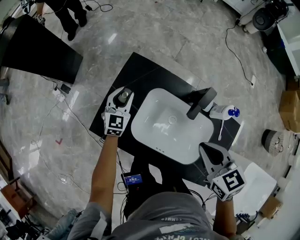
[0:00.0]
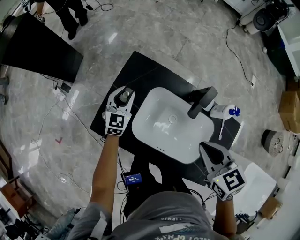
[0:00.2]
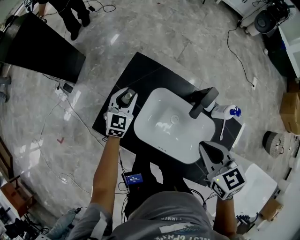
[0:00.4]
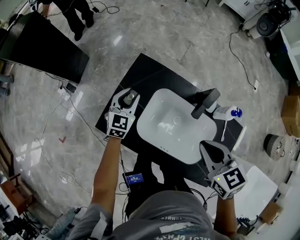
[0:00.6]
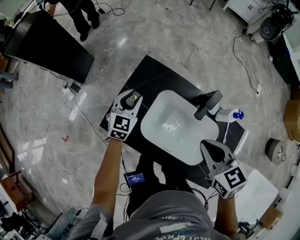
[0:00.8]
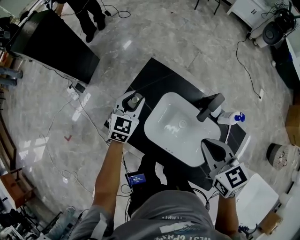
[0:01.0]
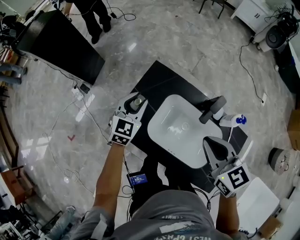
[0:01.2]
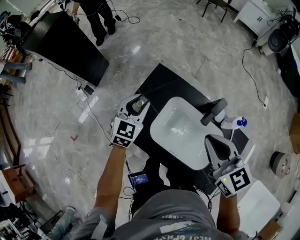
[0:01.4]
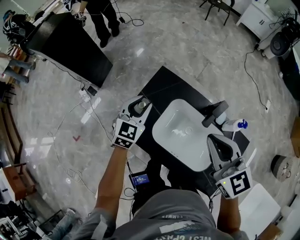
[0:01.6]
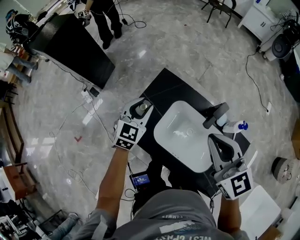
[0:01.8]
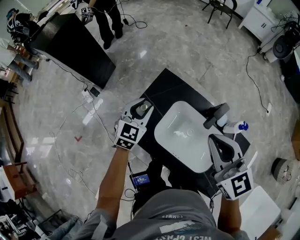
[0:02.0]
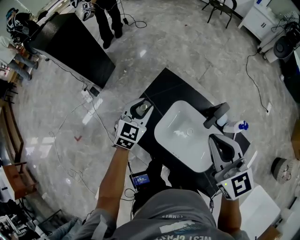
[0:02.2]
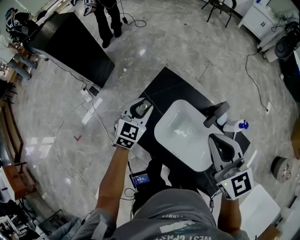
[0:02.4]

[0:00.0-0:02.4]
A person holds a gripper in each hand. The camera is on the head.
0:00.0 to 0:01.2: The left gripper shifts about 10 cm upward, while the right gripper heads upward, covering some 5 cm.
0:01.2 to 0:02.4: The right gripper goes about 5 cm upward.

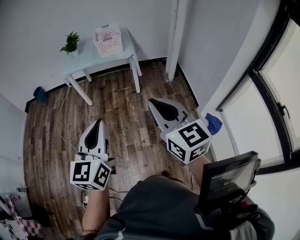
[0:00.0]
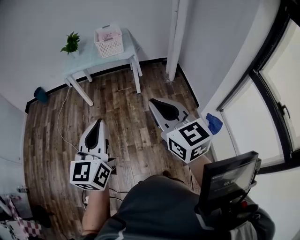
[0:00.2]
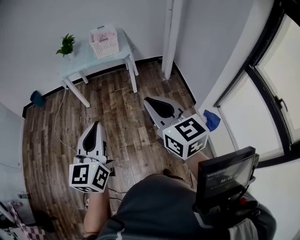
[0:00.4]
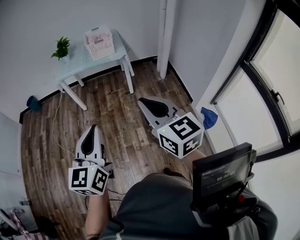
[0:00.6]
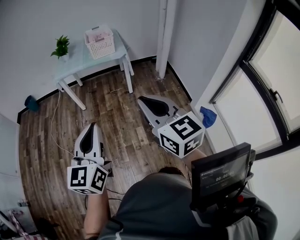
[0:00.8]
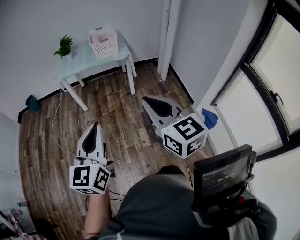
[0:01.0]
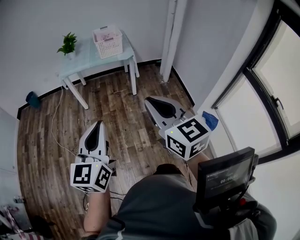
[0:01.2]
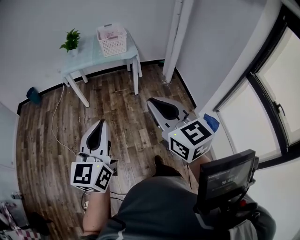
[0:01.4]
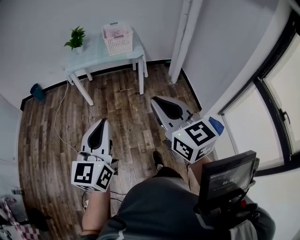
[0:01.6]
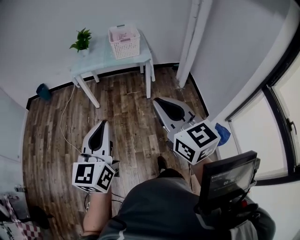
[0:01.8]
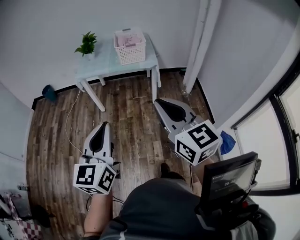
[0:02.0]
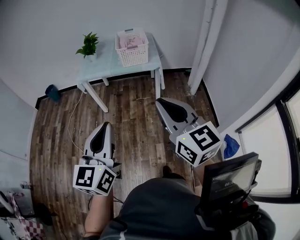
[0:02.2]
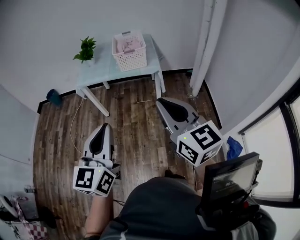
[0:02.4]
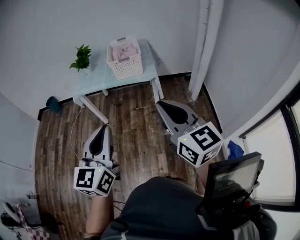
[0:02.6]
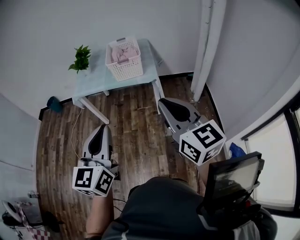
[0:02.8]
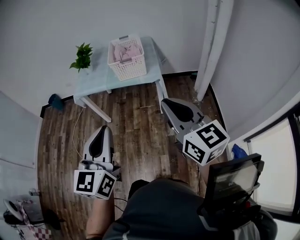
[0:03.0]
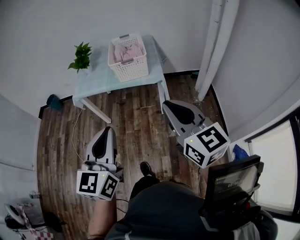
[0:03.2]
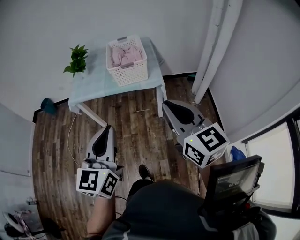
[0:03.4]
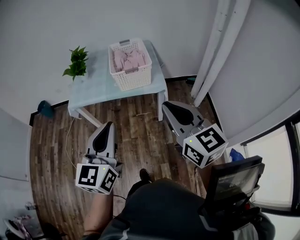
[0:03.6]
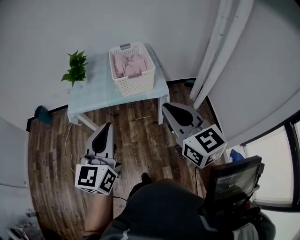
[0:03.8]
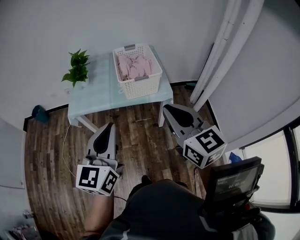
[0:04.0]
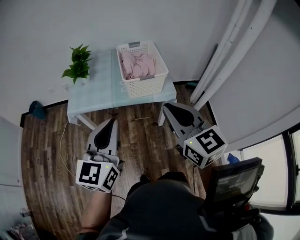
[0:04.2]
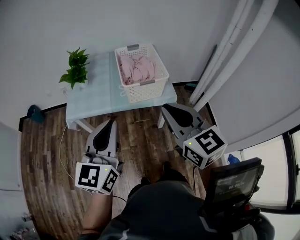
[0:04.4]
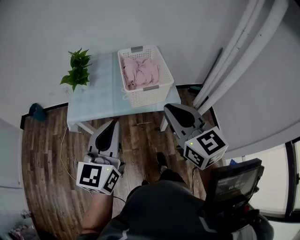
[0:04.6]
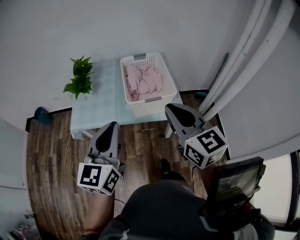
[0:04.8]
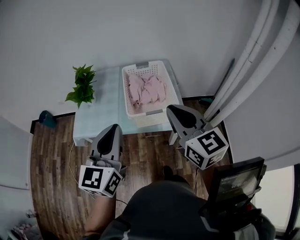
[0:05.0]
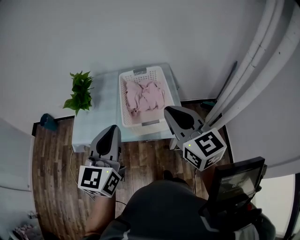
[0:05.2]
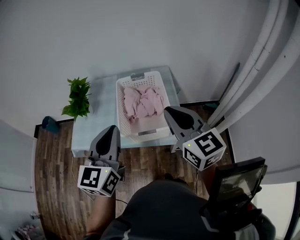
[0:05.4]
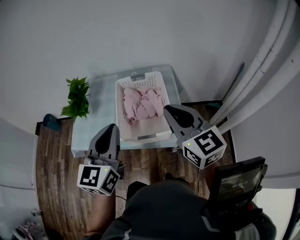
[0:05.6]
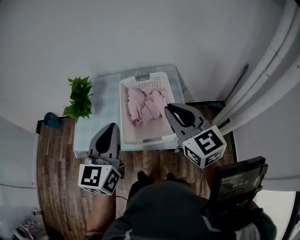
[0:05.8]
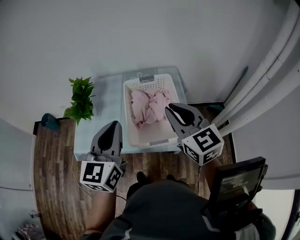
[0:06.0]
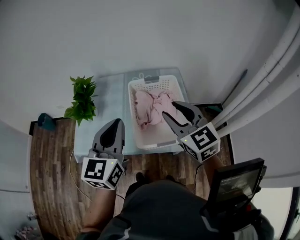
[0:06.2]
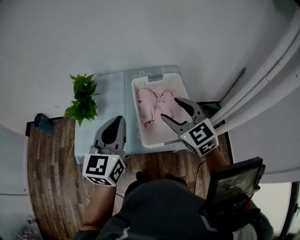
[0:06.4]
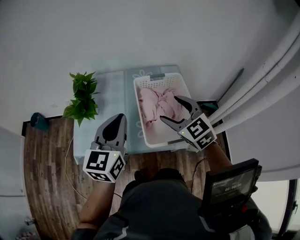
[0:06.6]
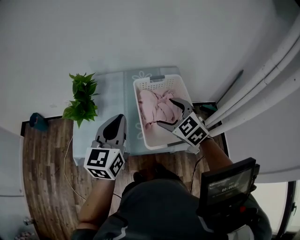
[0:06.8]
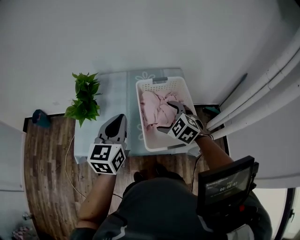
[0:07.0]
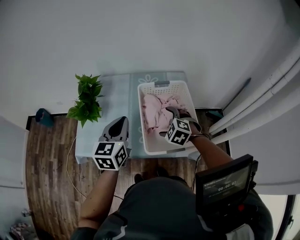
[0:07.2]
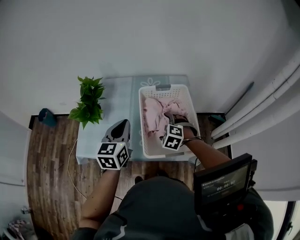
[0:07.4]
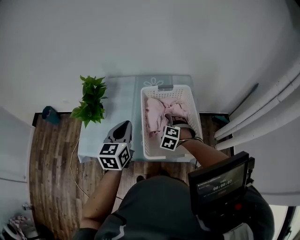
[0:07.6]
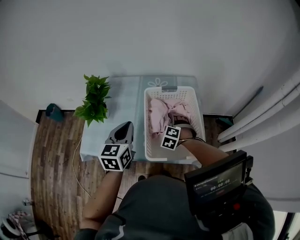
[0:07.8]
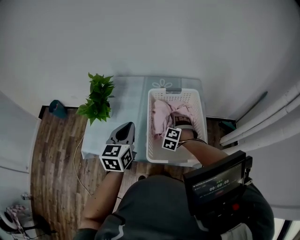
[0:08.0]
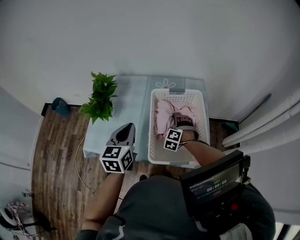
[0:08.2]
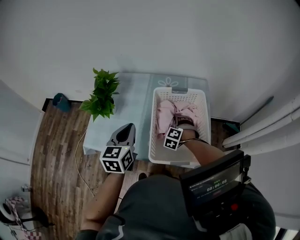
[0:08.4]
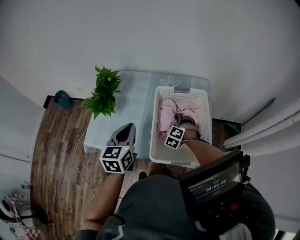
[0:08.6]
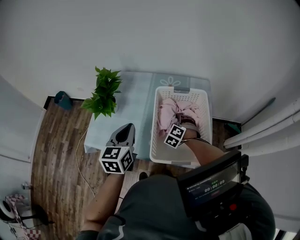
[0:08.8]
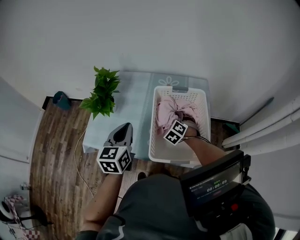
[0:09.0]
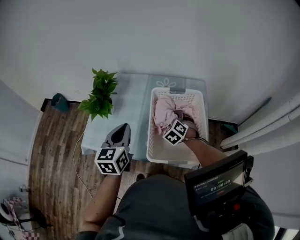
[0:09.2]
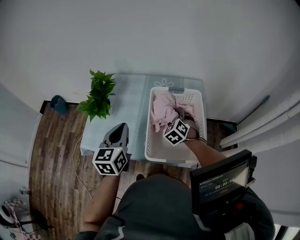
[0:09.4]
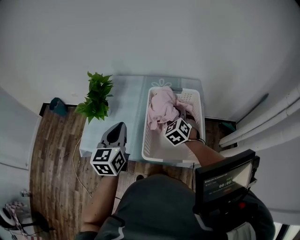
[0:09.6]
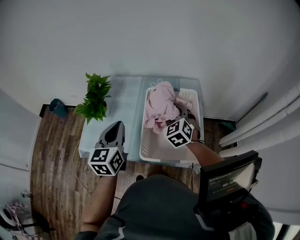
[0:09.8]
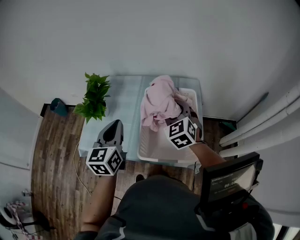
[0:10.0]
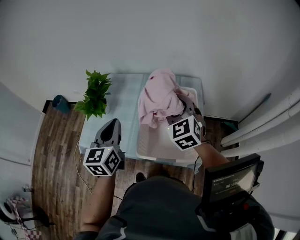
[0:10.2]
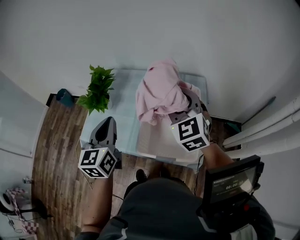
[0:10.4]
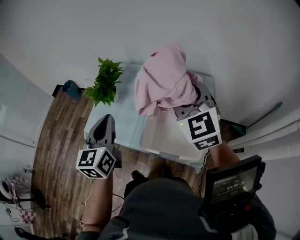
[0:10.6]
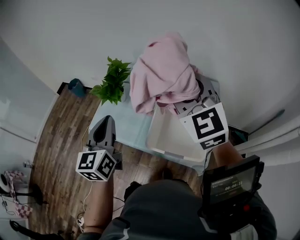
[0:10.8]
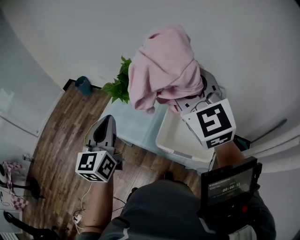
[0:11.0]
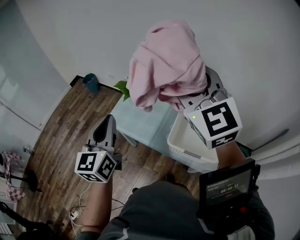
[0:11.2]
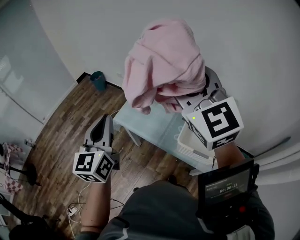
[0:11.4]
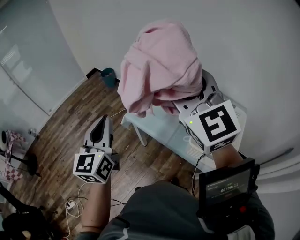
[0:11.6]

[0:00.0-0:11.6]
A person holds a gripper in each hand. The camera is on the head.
0:00.0 to 0:01.4: Both grippers travel together to the left, roughly 10 cm.
0:01.4 to 0:02.8: The right gripper is displaced forward and to the right by some 35 cm. Meanwhile the left gripper travels forward by roughly 30 cm.
0:02.8 to 0:04.4: Both grippers move forward and to the left, some 35 cm.
0:04.4 to 0:05.8: The grippers both shift forward by approximately 25 cm.
0:05.8 to 0:07.2: The right gripper goes roughly 30 cm downward, forward and to the left, tilts its fingers approximately 50 degrees downward, and opens, while the left gripper is displaced forward, downward and to the left by approximately 20 cm.
0:07.2 to 0:08.8: The right gripper heads downward and forward, covering roughly 15 cm, and closes up.
0:08.8 to 0:10.2: The left gripper moves upward, some 5 cm, while the right gripper heads upward, covering approximately 25 cm, and tips its fingers upward by about 30 degrees.
0:10.2 to 0:11.6: The right gripper ends up approximately 40 cm from where it was, and turns by some 50 degrees. The left gripper changes place by some 35 cm, and changes its angle by roughly 30 degrees.

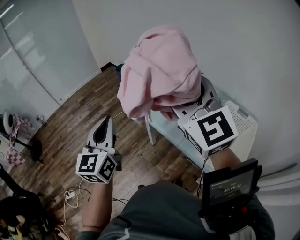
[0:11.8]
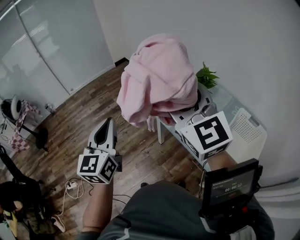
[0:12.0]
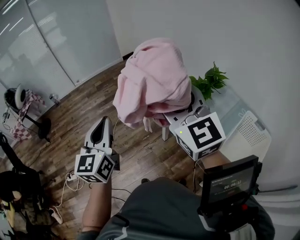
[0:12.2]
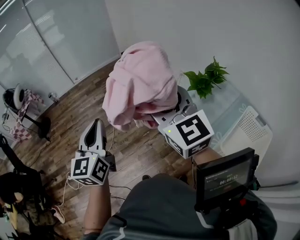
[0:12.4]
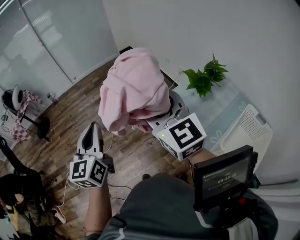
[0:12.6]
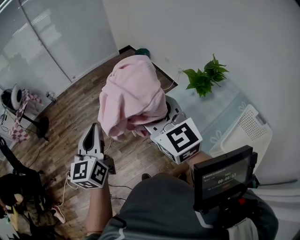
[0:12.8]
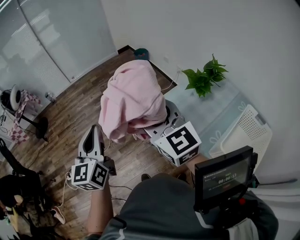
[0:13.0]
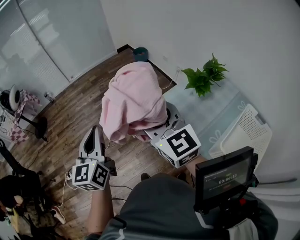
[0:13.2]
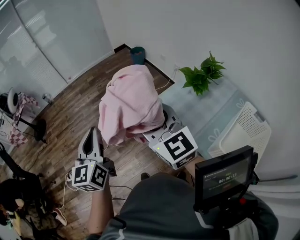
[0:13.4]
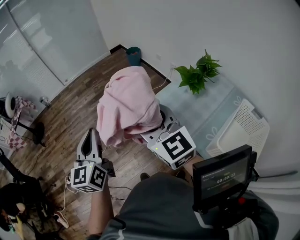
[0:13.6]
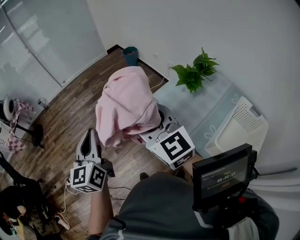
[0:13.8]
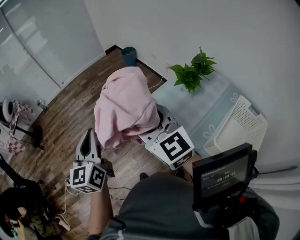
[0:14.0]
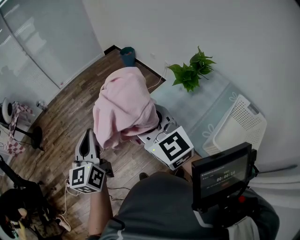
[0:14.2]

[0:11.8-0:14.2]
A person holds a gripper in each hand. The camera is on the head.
0:11.8 to 0:13.0: The right gripper goes approximately 20 cm to the left and downward, and swivels approximately 30 degrees. The left gripper travels to the left by roughly 15 cm.
0:13.0 to 0:14.2: There are only small adjustments of the grippers.

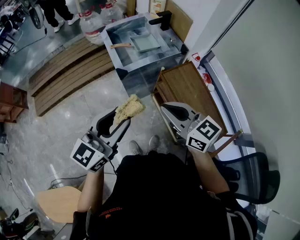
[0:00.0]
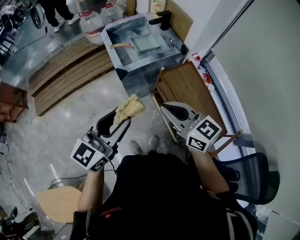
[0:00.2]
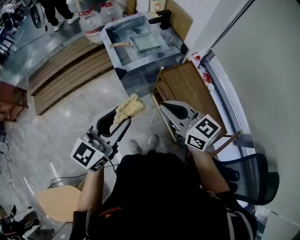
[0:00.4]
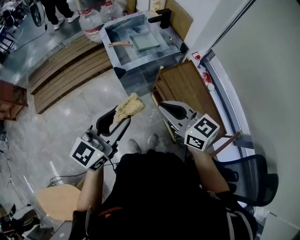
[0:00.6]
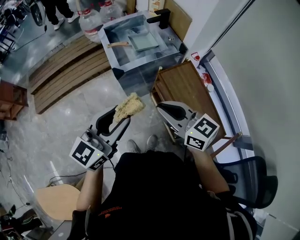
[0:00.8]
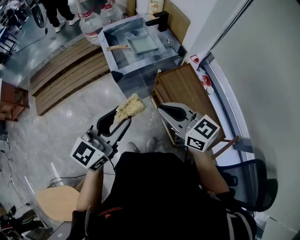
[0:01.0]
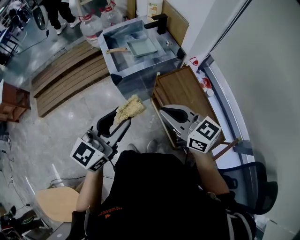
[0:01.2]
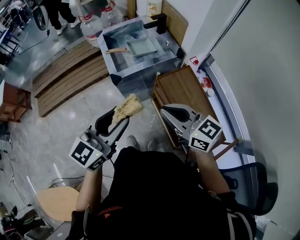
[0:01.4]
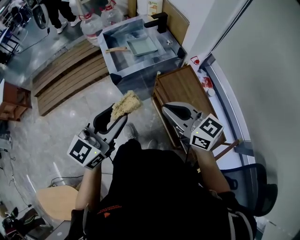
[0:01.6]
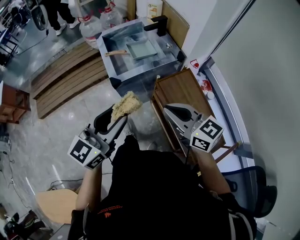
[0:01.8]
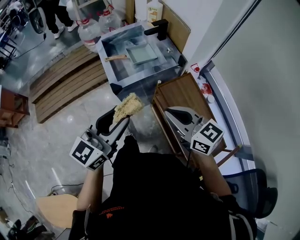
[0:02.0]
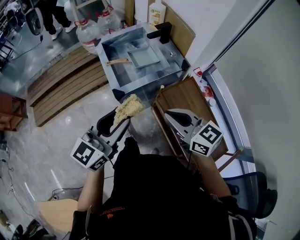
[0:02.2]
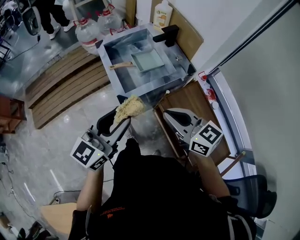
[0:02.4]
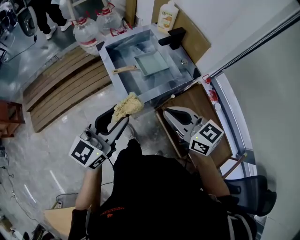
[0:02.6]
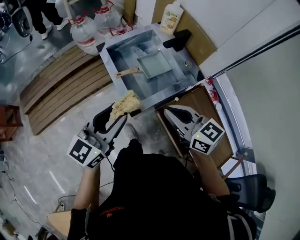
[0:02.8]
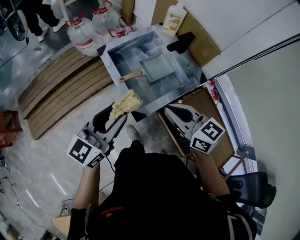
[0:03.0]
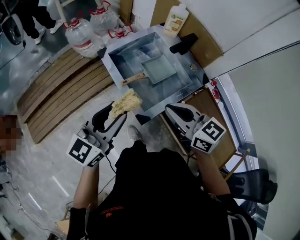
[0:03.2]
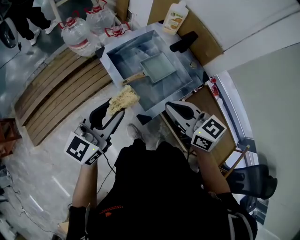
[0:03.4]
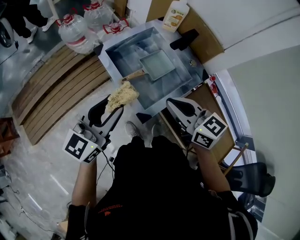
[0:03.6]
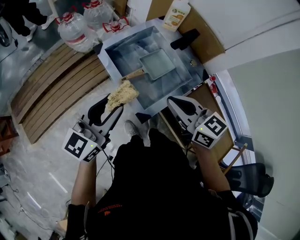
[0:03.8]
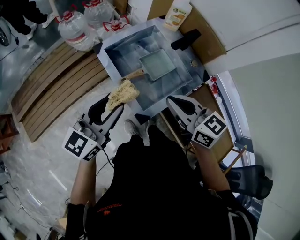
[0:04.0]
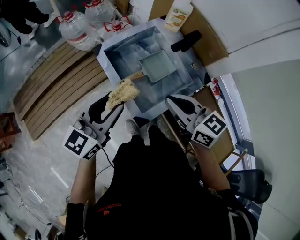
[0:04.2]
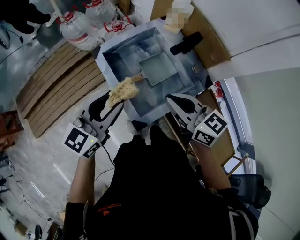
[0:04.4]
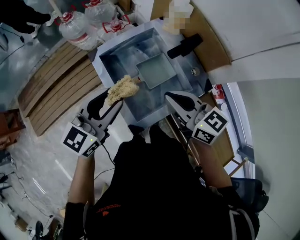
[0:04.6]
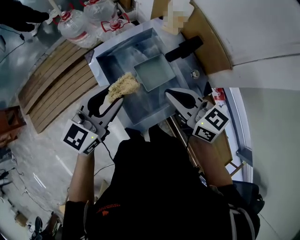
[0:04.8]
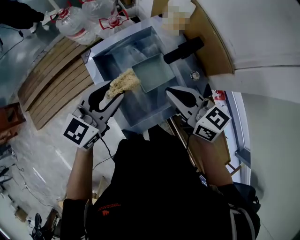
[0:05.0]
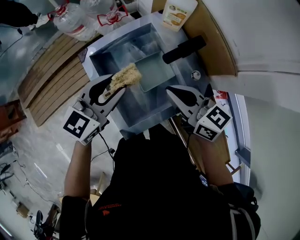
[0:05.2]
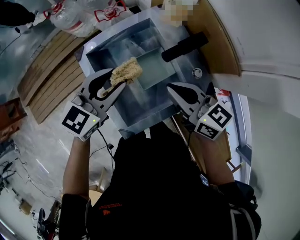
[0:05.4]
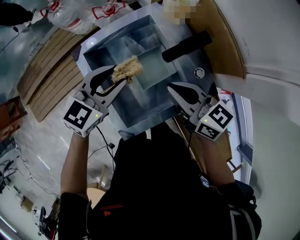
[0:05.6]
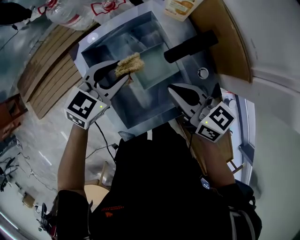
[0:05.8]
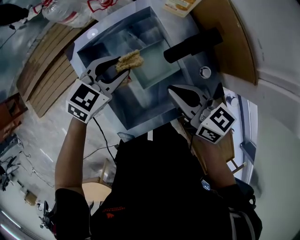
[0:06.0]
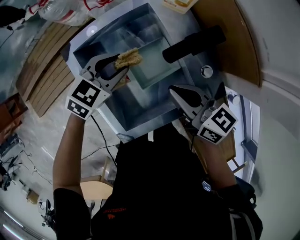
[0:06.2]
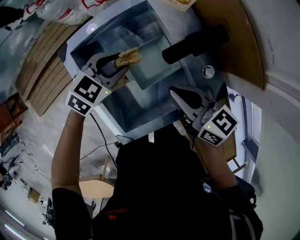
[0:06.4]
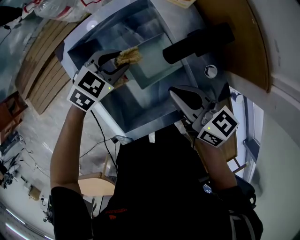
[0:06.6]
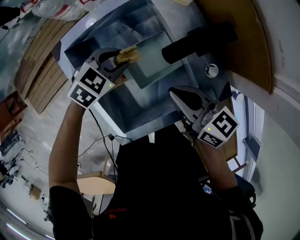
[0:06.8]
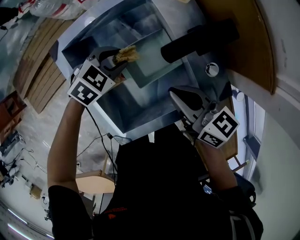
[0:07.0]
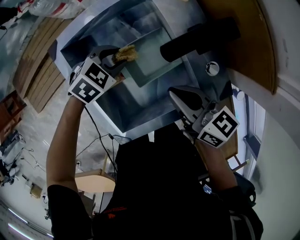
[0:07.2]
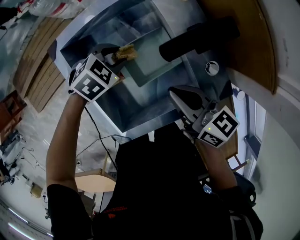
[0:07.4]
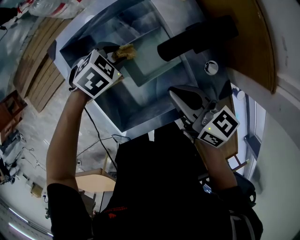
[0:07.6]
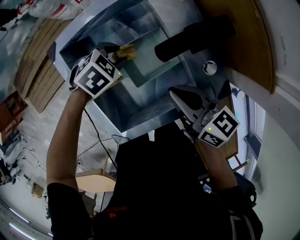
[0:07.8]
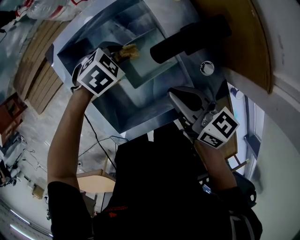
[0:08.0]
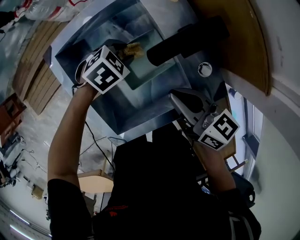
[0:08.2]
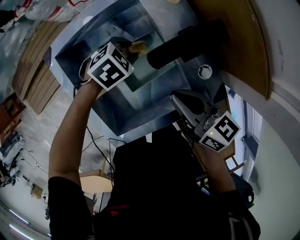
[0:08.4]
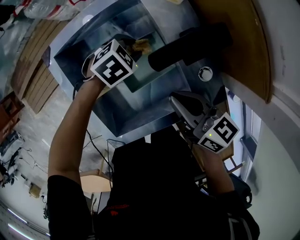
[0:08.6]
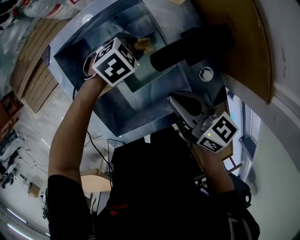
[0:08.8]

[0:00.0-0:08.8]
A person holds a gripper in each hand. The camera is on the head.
0:00.0 to 0:01.4: The two grippers go approximately 5 cm to the right.
0:01.4 to 0:03.0: Both grippers move forward and to the left, roughly 35 cm.
0:03.0 to 0:04.4: The two grippers go approximately 10 cm forward.
0:04.4 to 0:05.8: The two grippers go about 20 cm forward, downward and to the right. The left gripper changes its angle by roughly 30 degrees.
0:05.8 to 0:07.4: The right gripper heads downward, covering approximately 10 cm, while the left gripper heads downward, covering about 15 cm, and points its fingers some 30 degrees further downward.
0:07.4 to 0:08.8: The left gripper ends up approximately 10 cm from where it was.
